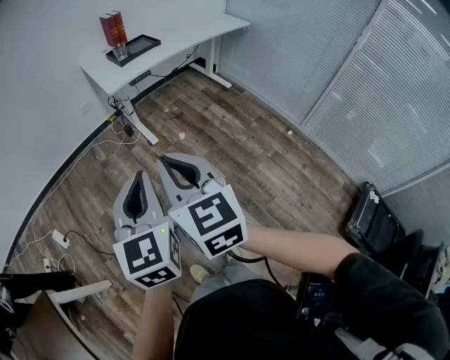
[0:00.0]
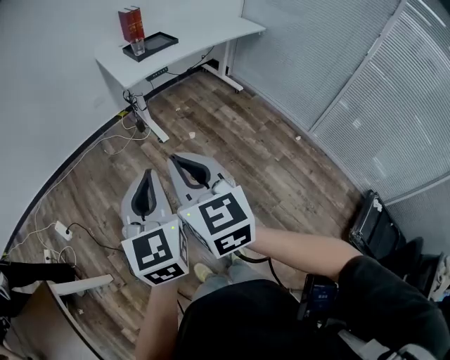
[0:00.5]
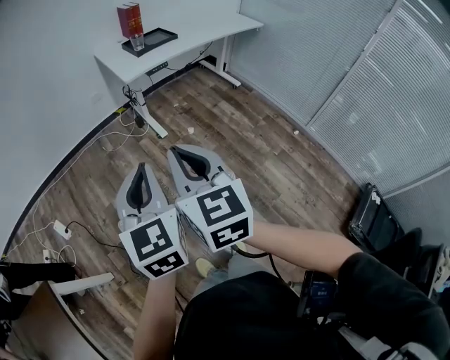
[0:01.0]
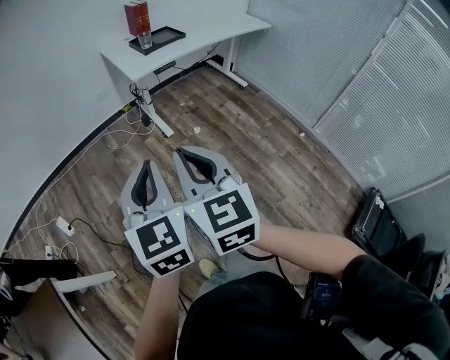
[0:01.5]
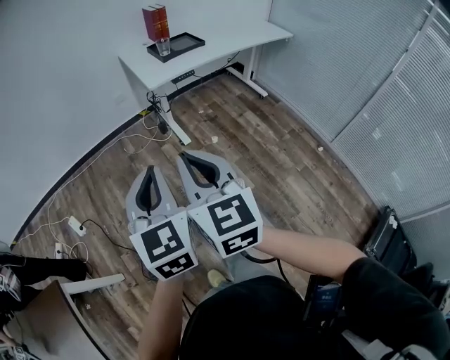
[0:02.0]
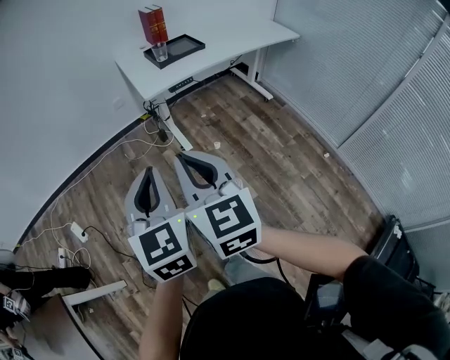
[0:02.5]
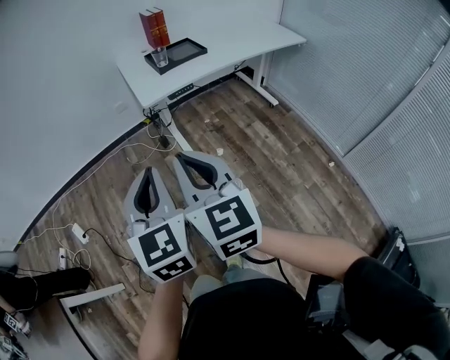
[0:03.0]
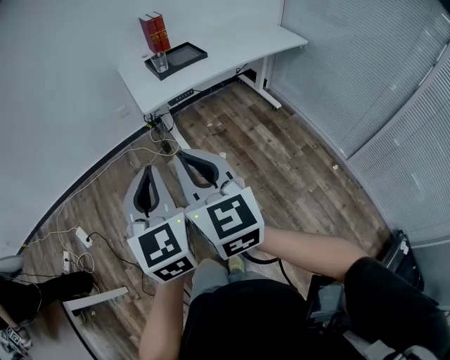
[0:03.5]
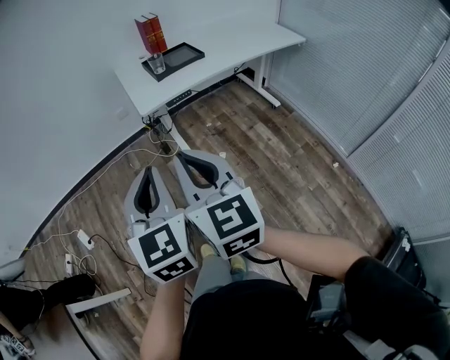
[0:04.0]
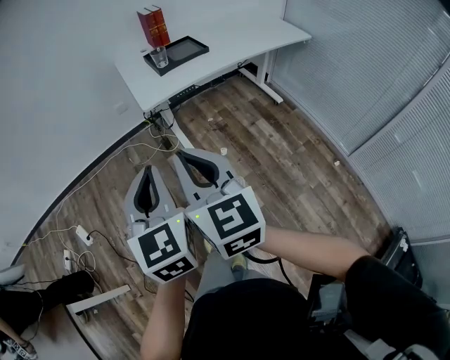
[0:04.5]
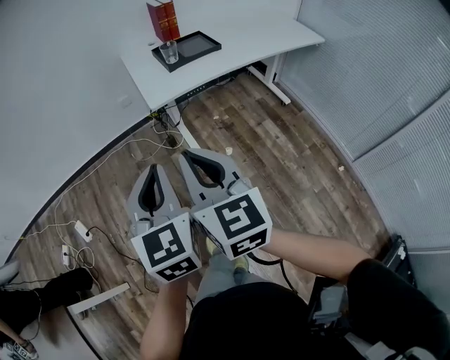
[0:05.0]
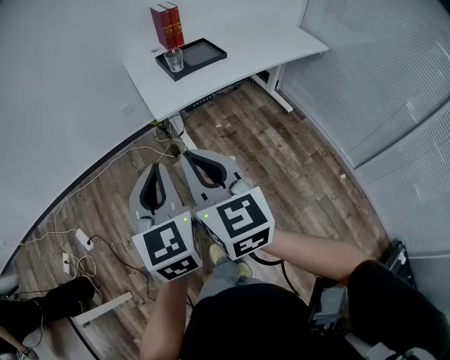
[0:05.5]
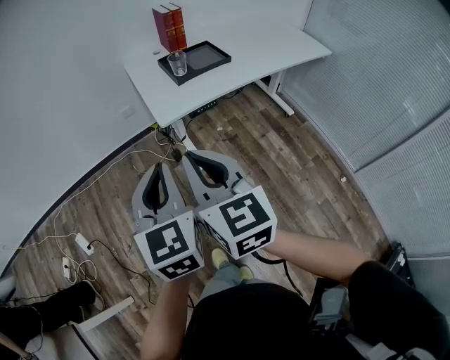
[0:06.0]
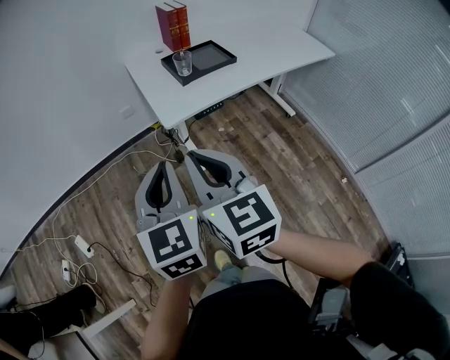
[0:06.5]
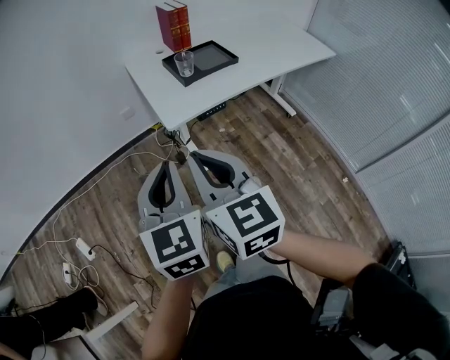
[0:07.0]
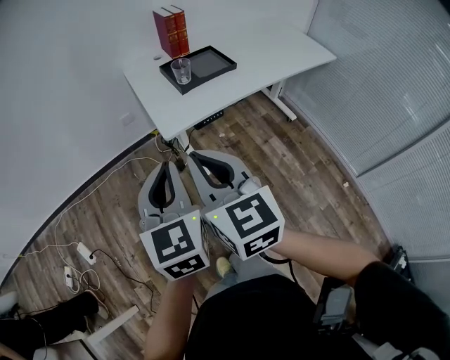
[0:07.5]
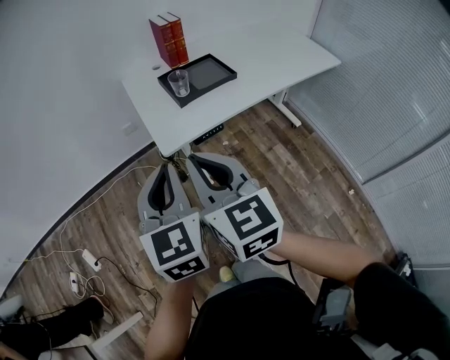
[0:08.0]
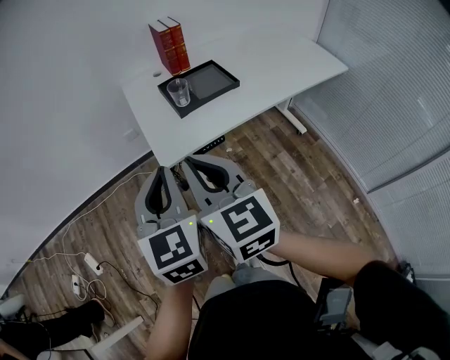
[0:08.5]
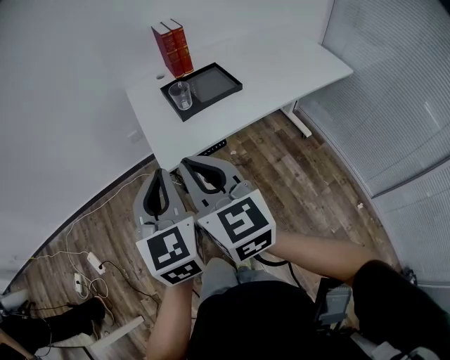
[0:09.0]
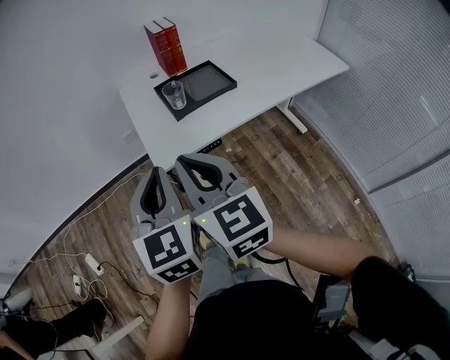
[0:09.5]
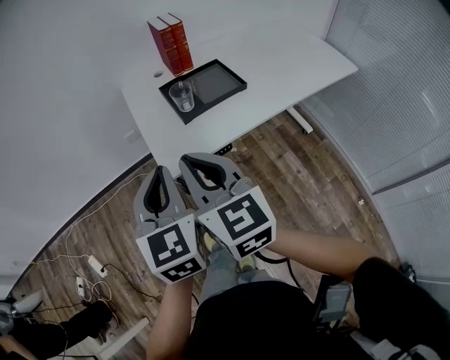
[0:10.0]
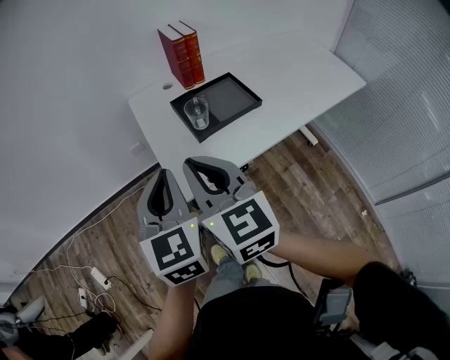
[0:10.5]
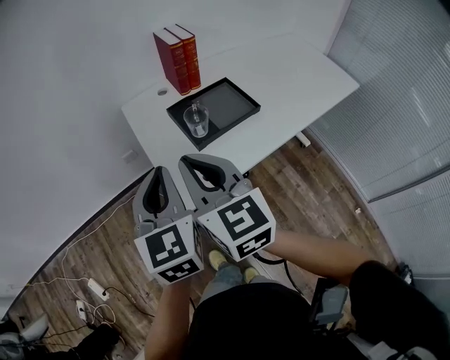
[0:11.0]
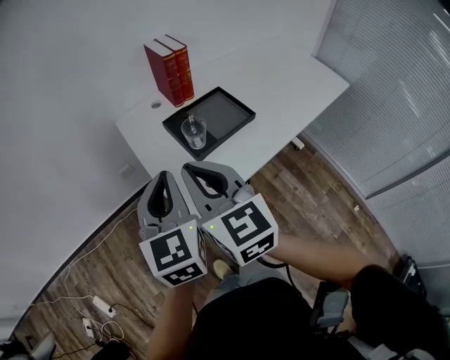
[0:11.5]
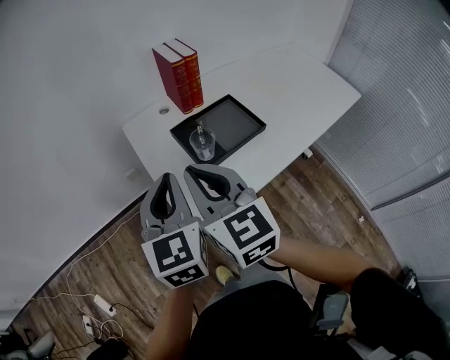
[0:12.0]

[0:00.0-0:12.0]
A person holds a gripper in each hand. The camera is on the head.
0.0 to 2.0 s: Both grippers travel together to the left and forward, roughly 10 cm.
2.0 to 4.0 s: Both grippers travel together forward and to the right, about 20 cm.
4.0 to 6.0 s: The grippers both shift forward by some 15 cm.
6.0 to 8.0 s: Both grippers move forward, some 10 cm.
8.0 to 10.0 s: Both grippers move forward, about 10 cm.
10.0 to 12.0 s: The grippers both shift forward by approximately 20 cm.

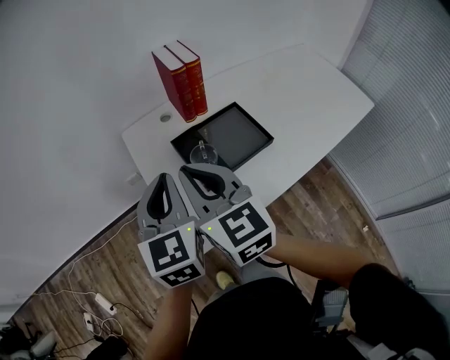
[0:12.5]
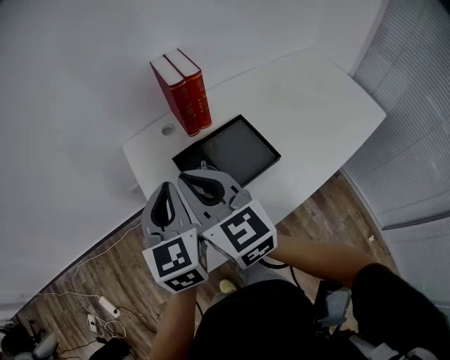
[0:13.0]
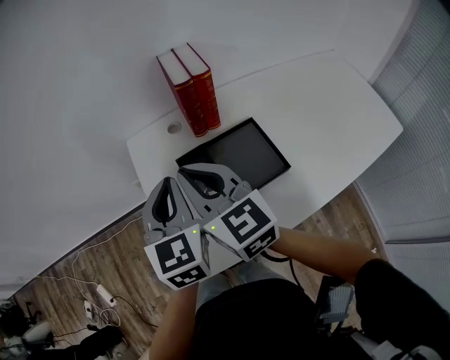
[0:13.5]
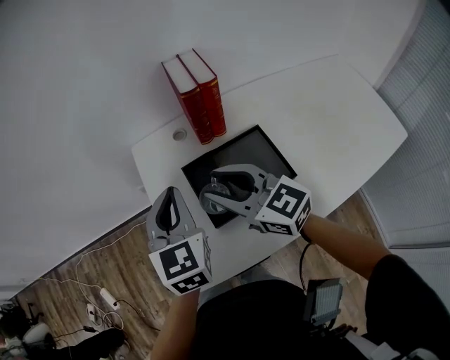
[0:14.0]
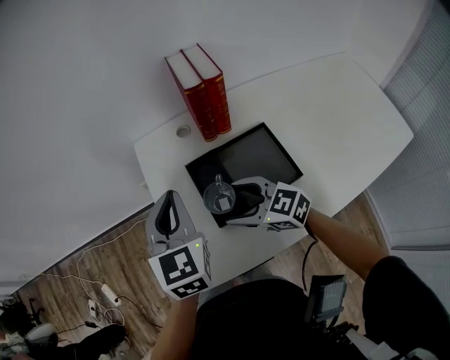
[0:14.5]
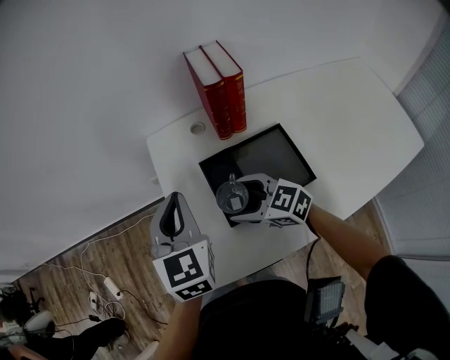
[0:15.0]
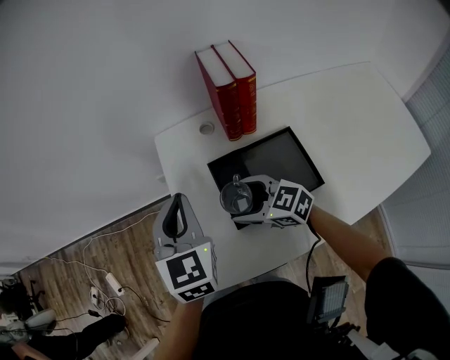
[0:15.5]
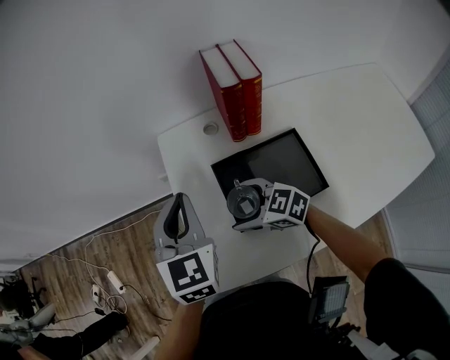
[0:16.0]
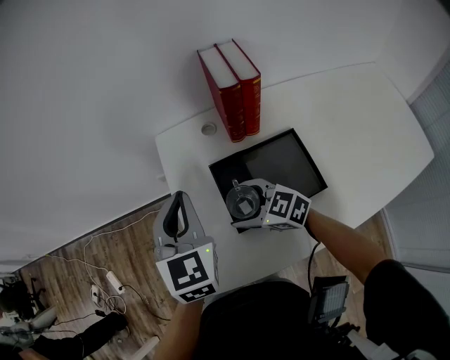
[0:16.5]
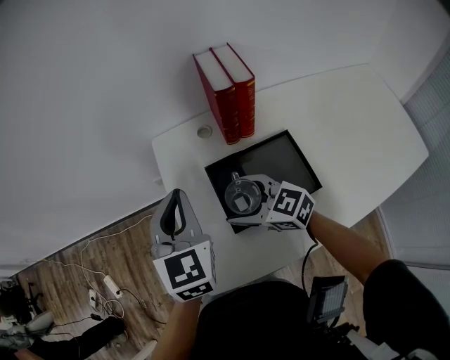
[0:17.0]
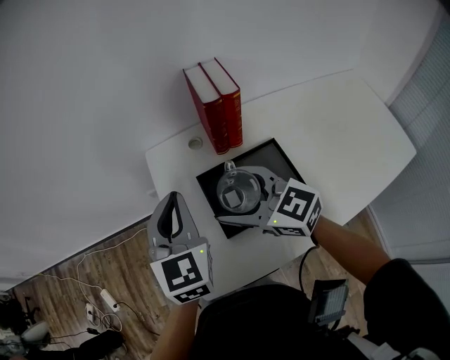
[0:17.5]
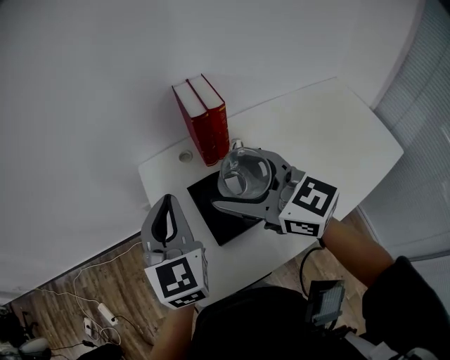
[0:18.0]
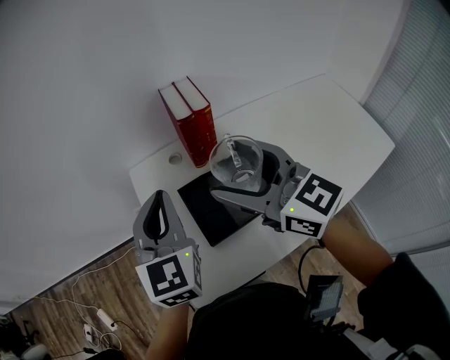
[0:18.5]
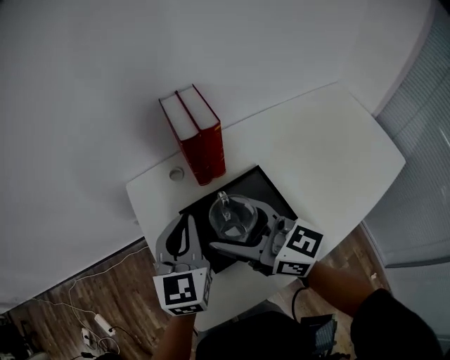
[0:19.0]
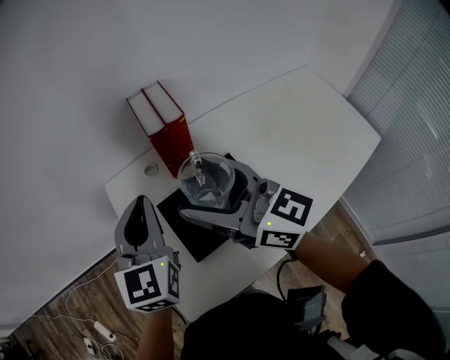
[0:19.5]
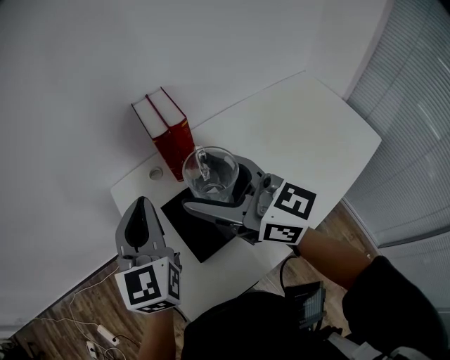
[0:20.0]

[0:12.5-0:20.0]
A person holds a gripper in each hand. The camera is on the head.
12.5 to 14.5 s: The left gripper shifts by roughly 10 cm, while the right gripper shifts approximately 20 cm downward, swivels approximately 50 degrees, and opens.
14.5 to 16.5 s: The right gripper ends up roughly 5 cm from where it was.
16.5 to 18.0 s: The left gripper is displaced upward by some 5 cm; the right gripper heads upward, covering approximately 25 cm, and changes its angle by roughly 30 degrees.
18.0 to 20.0 s: The left gripper reaches about 5 cm downward, then returns; the right gripper goes downward and returns, approximately 5 cm each way.

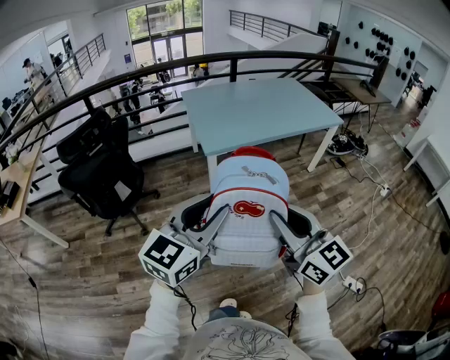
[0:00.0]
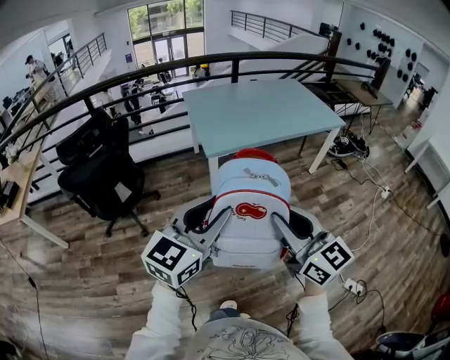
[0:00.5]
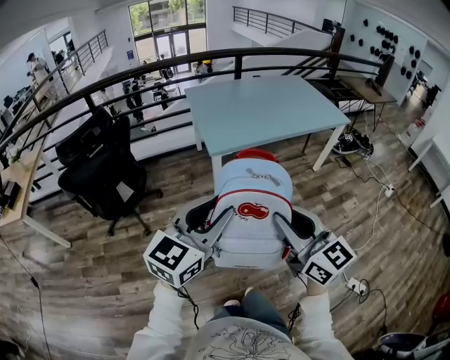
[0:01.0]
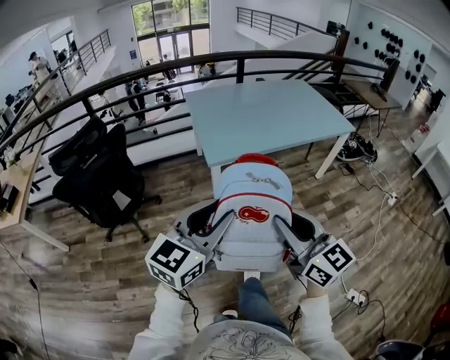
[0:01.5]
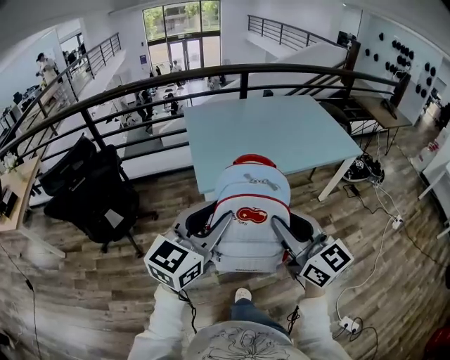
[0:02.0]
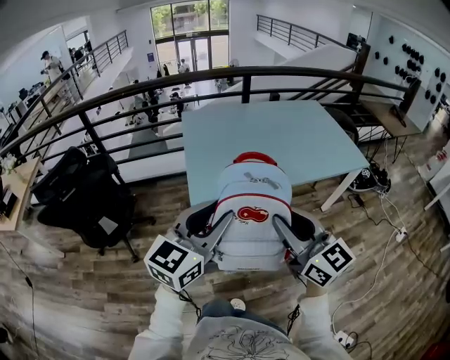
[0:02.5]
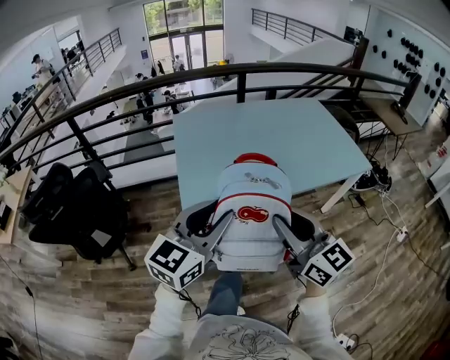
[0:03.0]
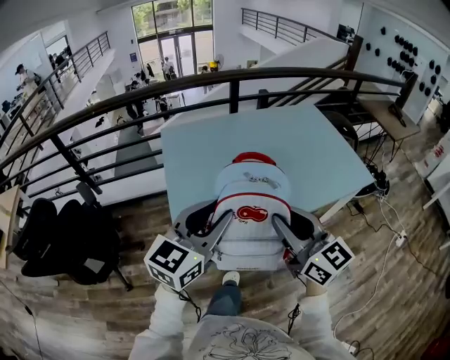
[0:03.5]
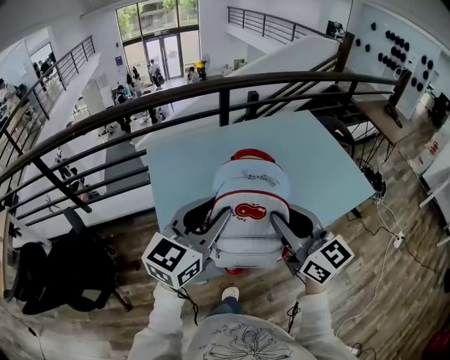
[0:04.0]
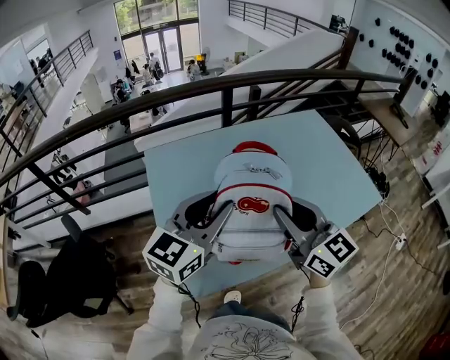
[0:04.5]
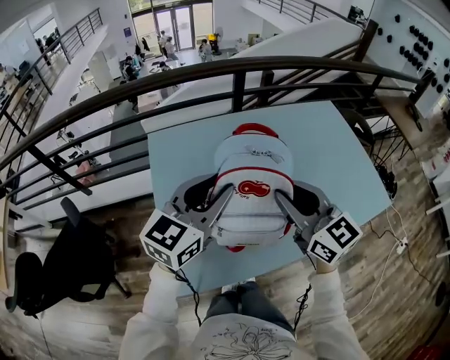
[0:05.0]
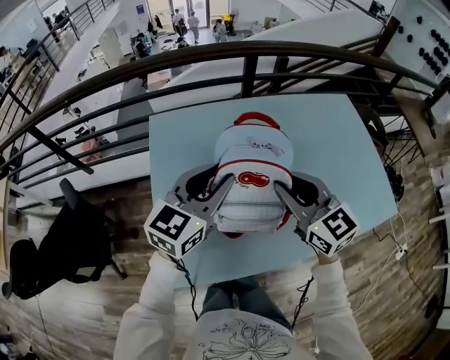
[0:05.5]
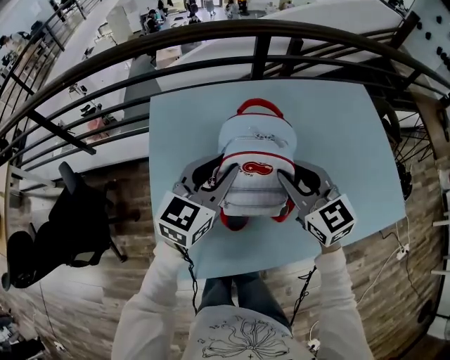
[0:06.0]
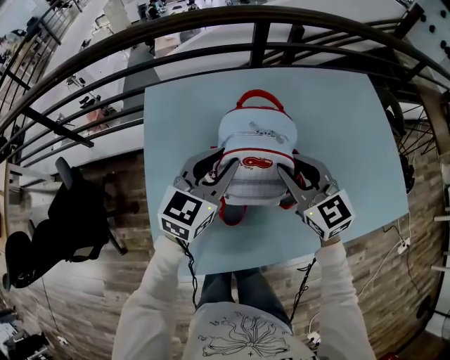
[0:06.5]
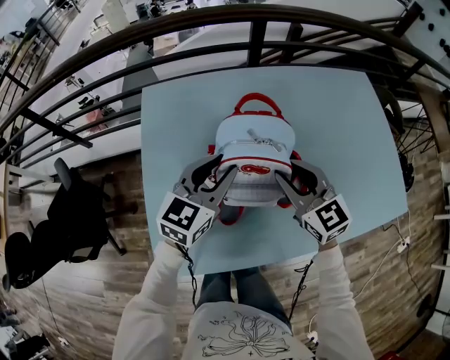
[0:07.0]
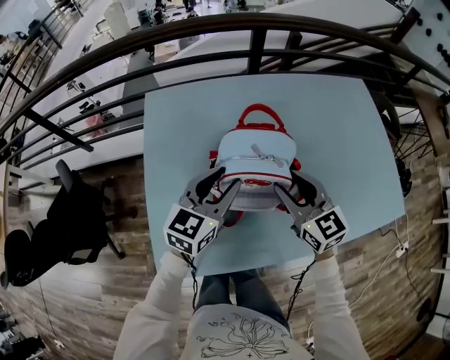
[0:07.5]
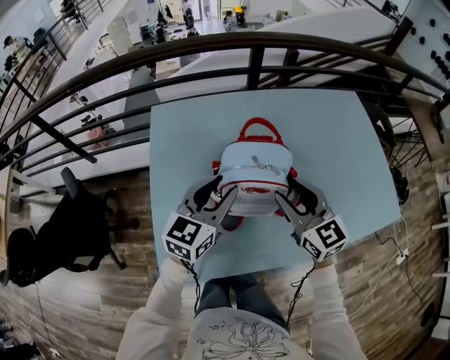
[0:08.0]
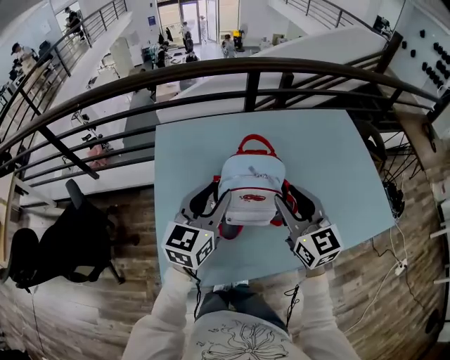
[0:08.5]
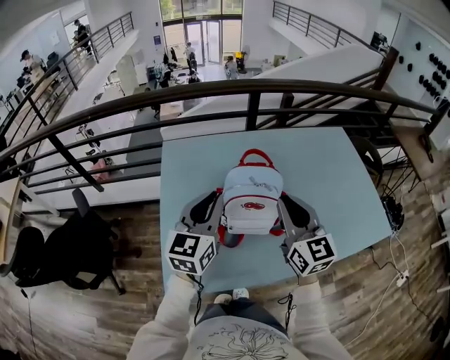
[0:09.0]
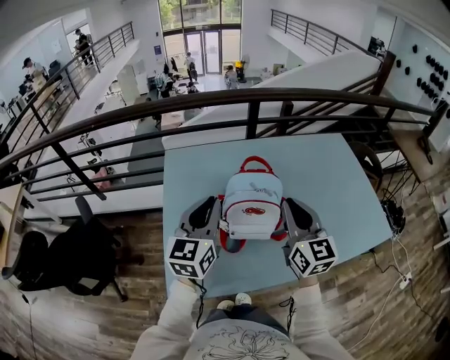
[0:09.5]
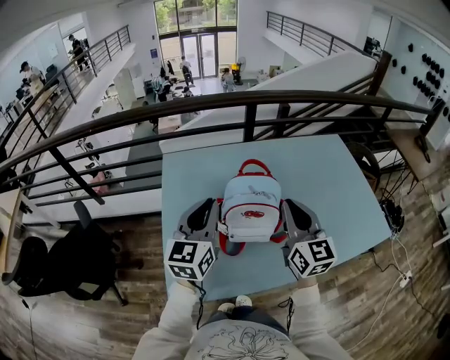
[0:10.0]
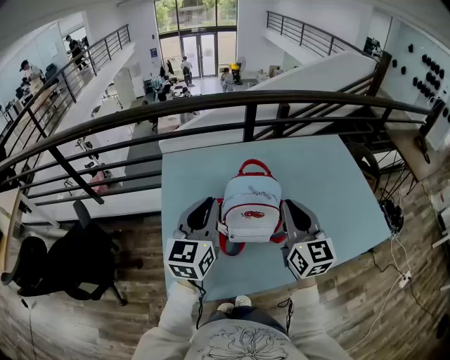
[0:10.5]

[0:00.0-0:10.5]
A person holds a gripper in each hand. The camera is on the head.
0.0 to 2.0 s: Both grippers move forward, some 30 cm.
2.0 to 4.0 s: The two grippers travel together, forward, approximately 50 cm.
4.0 to 6.5 s: The grippers both shift forward and downward by some 35 cm. The right gripper changes its angle by about 30 degrees.
6.5 to 8.5 s: Both grippers travel together backward and upward, approximately 10 cm.
8.5 to 10.5 s: Both grippers travel together upward, some 5 cm. The left gripper closes its fingers; the right gripper closes its fingers.
